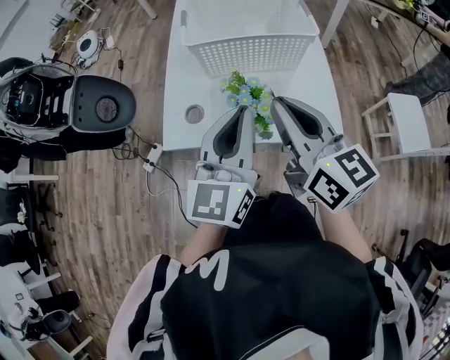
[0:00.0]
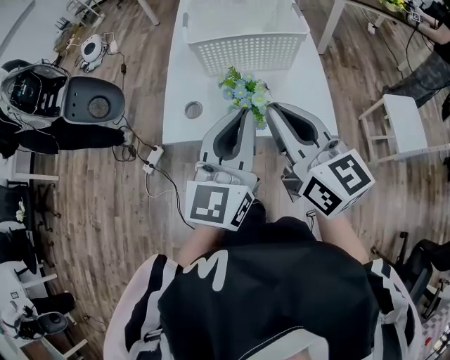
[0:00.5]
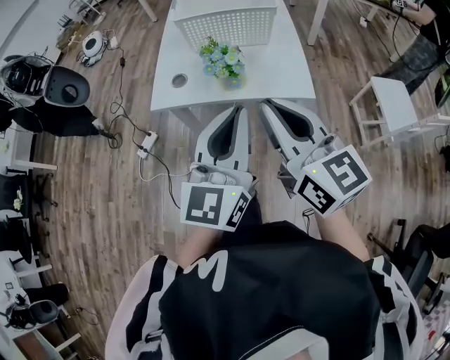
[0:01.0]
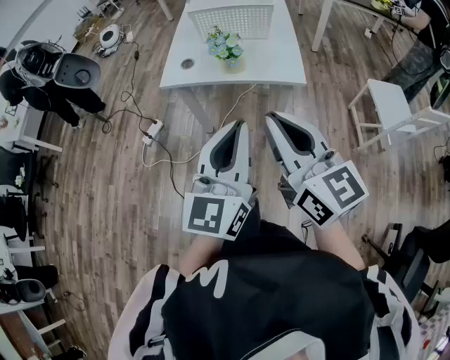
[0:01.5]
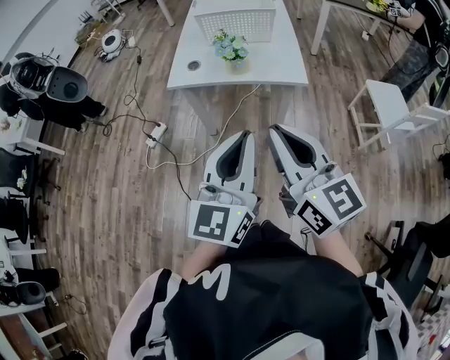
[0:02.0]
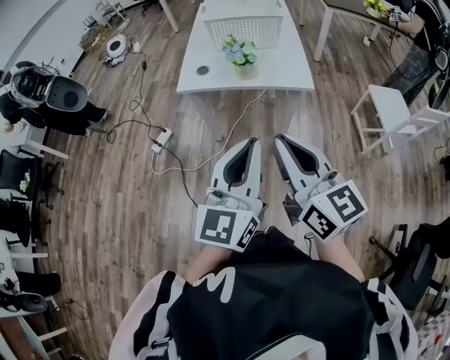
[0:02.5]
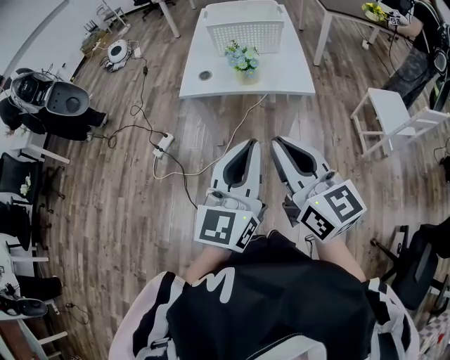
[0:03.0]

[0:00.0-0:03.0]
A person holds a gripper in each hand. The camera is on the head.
0:00.0 to 0:01.5: Both grippers travel together backward, about 35 cm.
0:01.5 to 0:03.0: The left gripper moves backward, approximately 5 cm; the right gripper shifts approximately 10 cm backward and to the left.

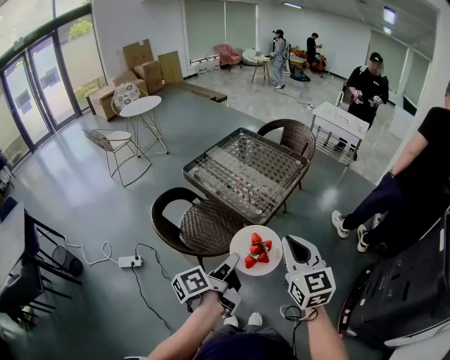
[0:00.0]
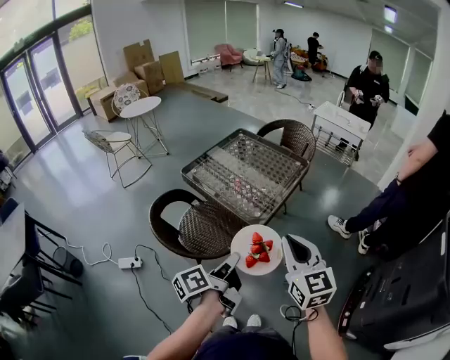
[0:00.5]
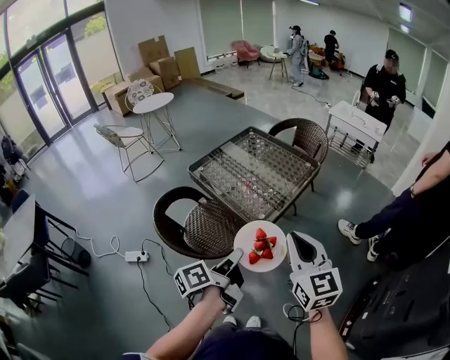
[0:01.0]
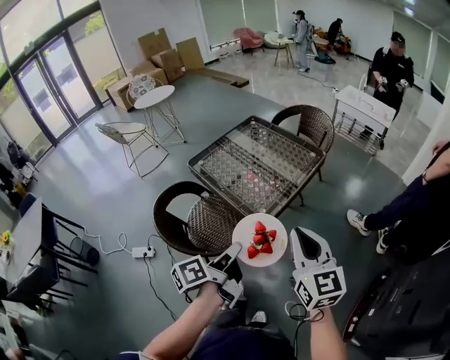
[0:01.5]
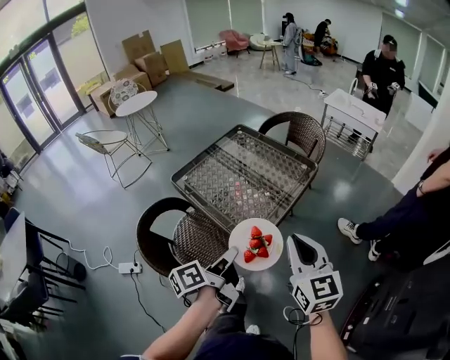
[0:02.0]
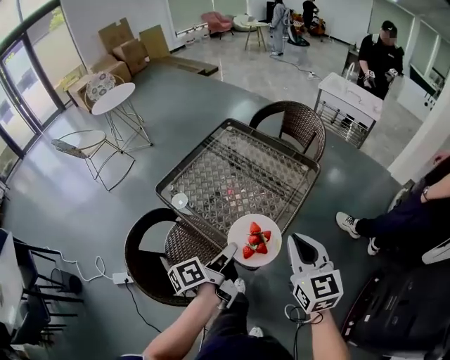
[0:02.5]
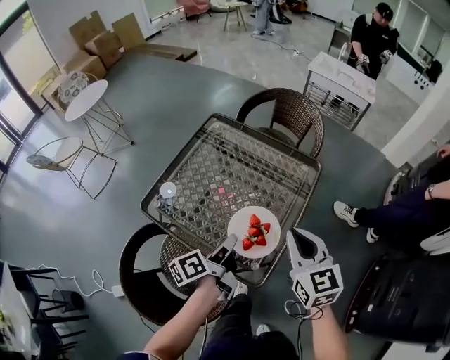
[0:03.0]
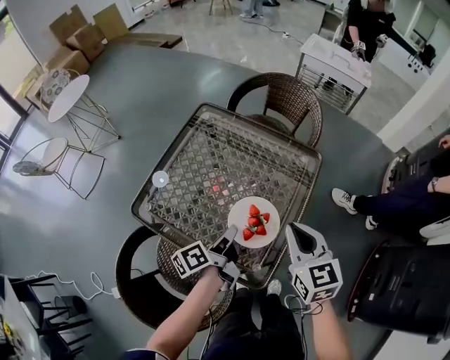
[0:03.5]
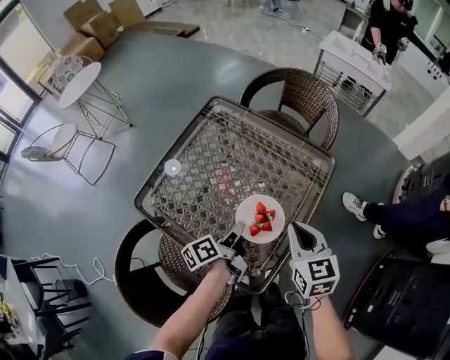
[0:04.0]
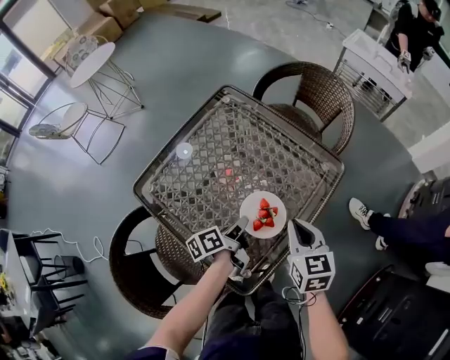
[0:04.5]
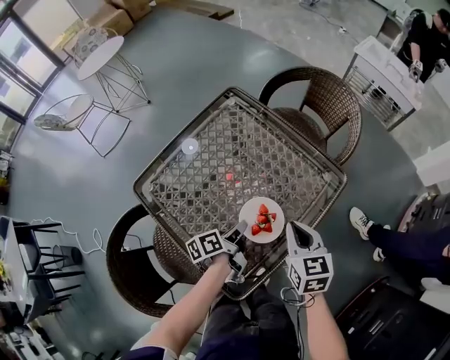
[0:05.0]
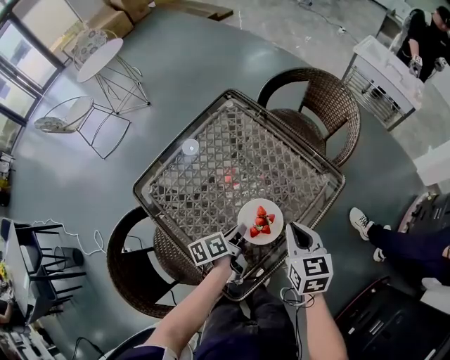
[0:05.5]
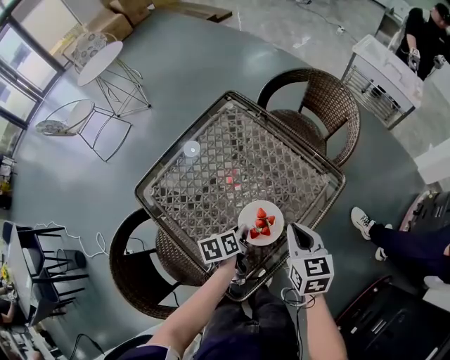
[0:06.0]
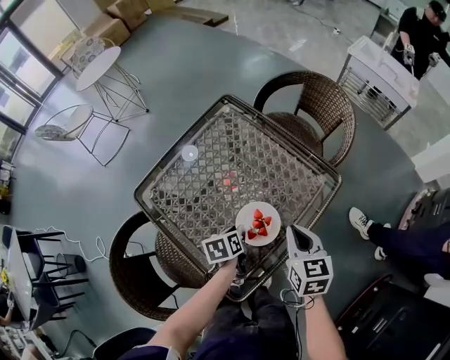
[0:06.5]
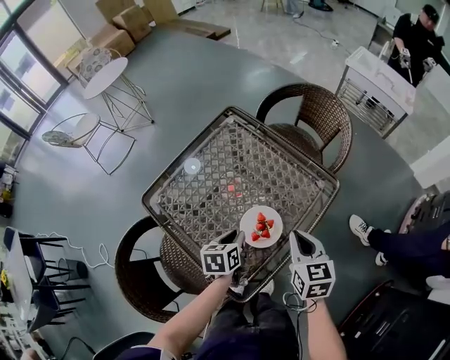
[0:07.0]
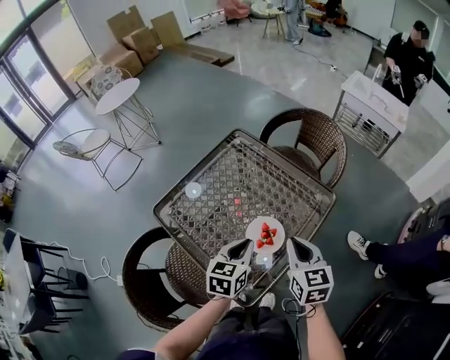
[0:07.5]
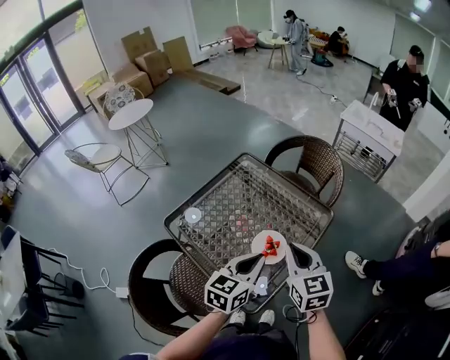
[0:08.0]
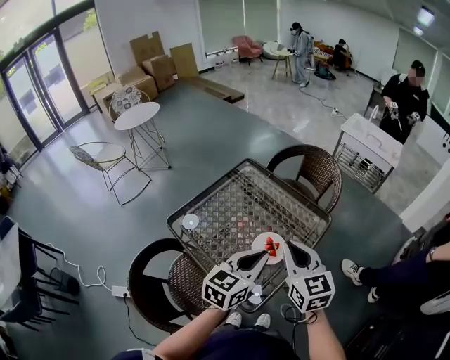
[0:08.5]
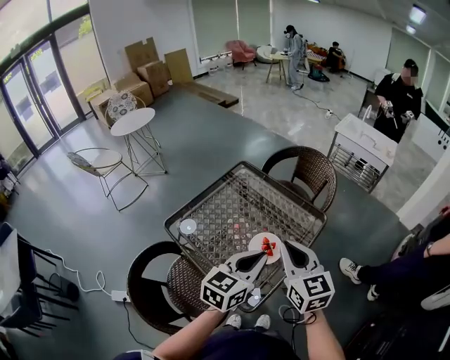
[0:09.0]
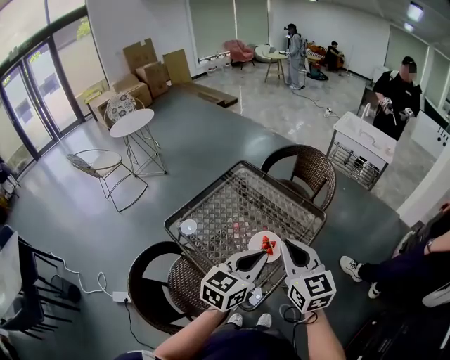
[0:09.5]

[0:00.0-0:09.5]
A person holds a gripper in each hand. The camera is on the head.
0:00.0 to 0:02.0: The grippers both shift forward by roughly 15 cm.
0:02.0 to 0:04.0: The two grippers go some 30 cm forward and downward. The right gripper turns by about 20 degrees.
0:04.0 to 0:05.5: The right gripper moves forward and downward, about 10 cm, while the left gripper heads downward, covering roughly 5 cm.
0:05.5 to 0:07.5: The right gripper is displaced upward by about 10 cm. The left gripper shifts approximately 15 cm upward, and rolls clockwise, seen from behind, by roughly 50 degrees.
0:07.5 to 0:09.5: The two grippers go about 15 cm upward. The left gripper turns by some 20 degrees.

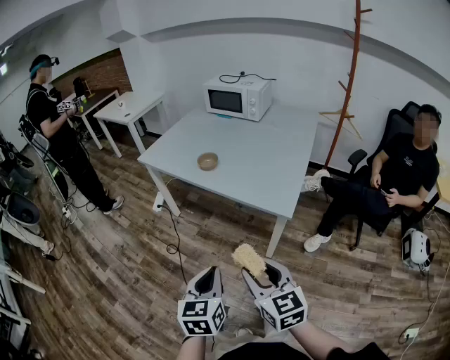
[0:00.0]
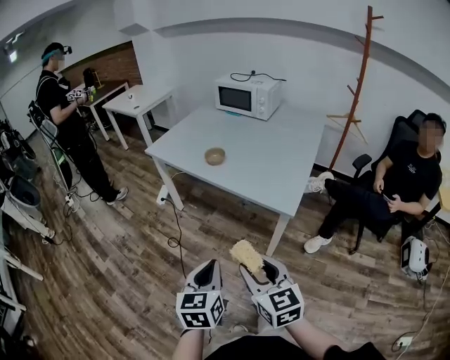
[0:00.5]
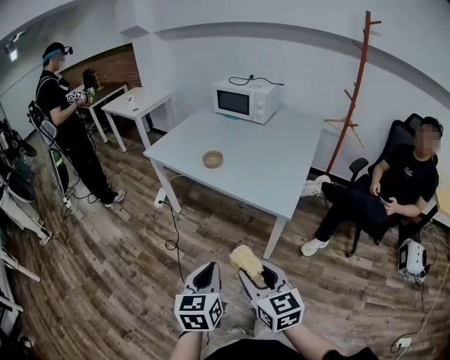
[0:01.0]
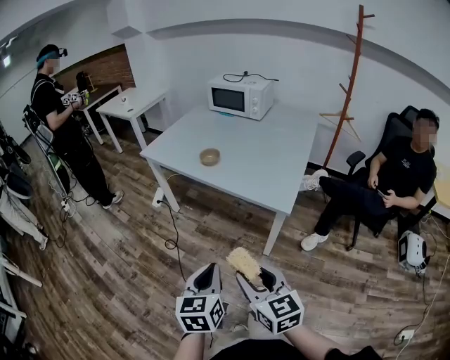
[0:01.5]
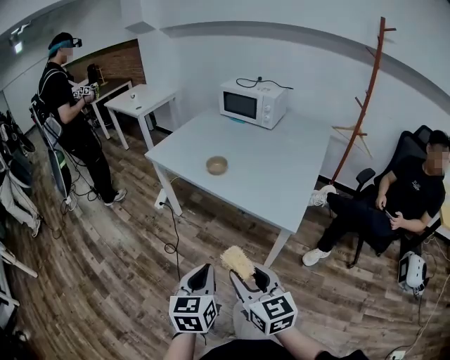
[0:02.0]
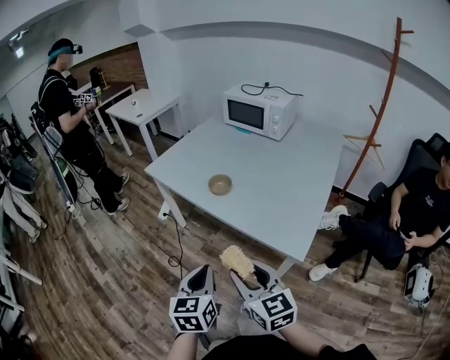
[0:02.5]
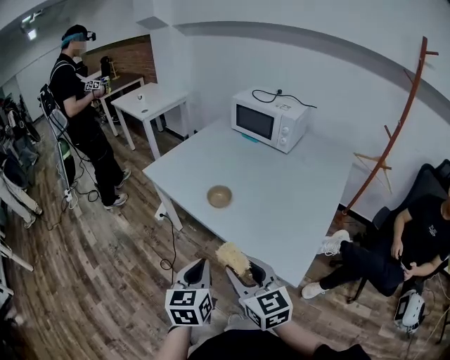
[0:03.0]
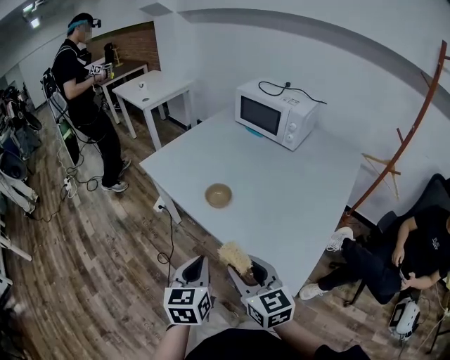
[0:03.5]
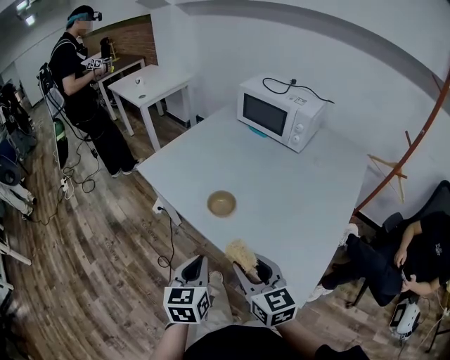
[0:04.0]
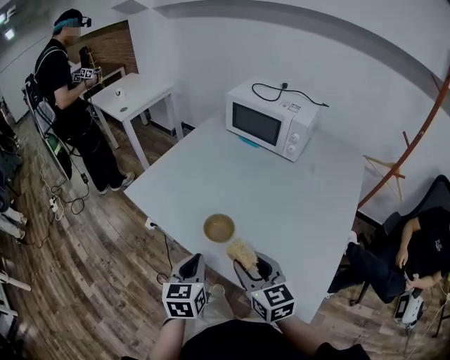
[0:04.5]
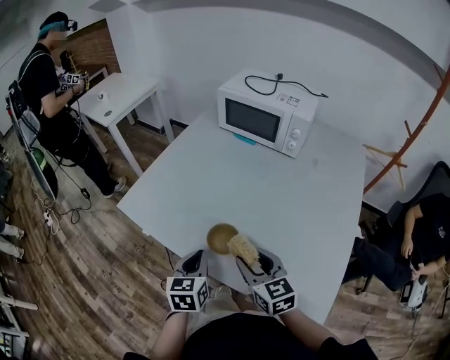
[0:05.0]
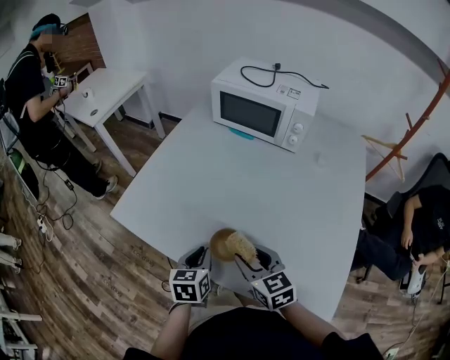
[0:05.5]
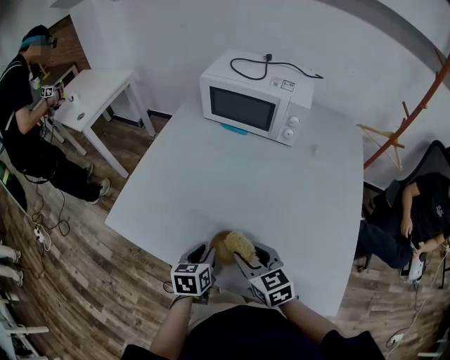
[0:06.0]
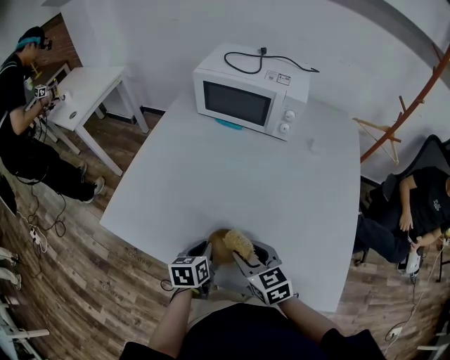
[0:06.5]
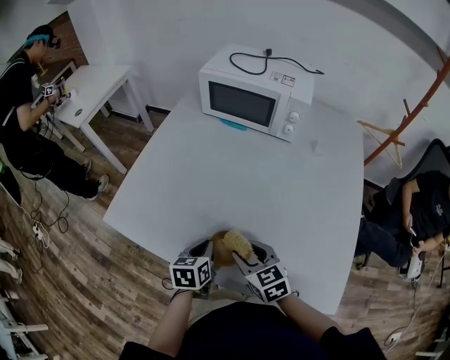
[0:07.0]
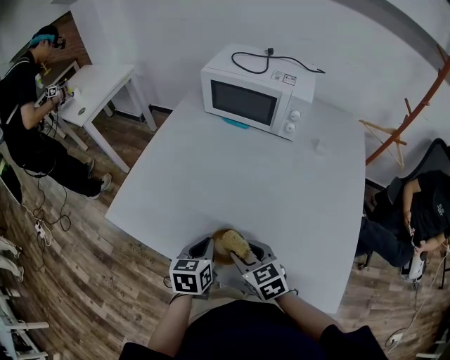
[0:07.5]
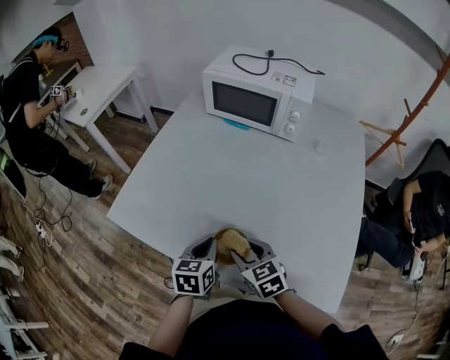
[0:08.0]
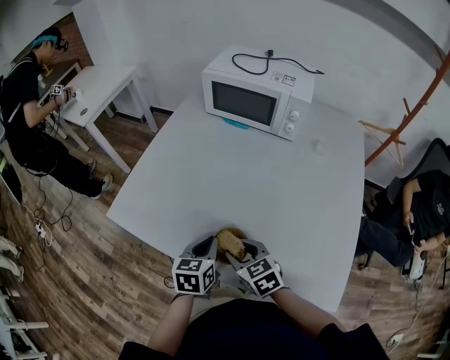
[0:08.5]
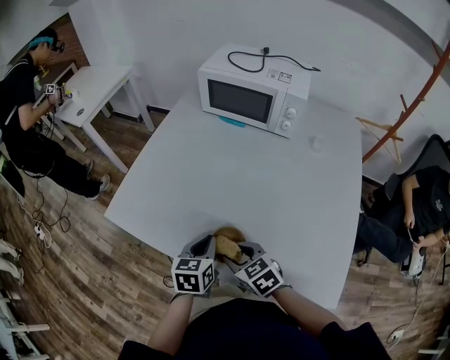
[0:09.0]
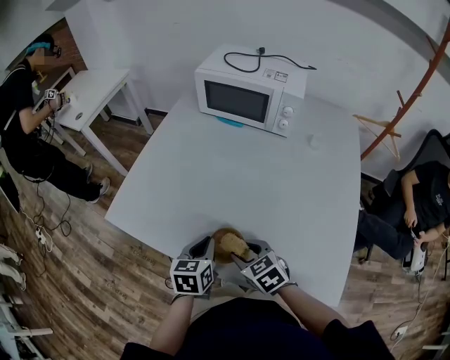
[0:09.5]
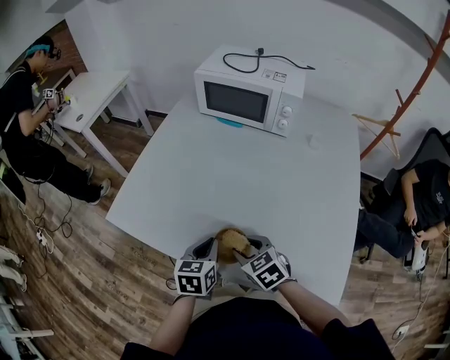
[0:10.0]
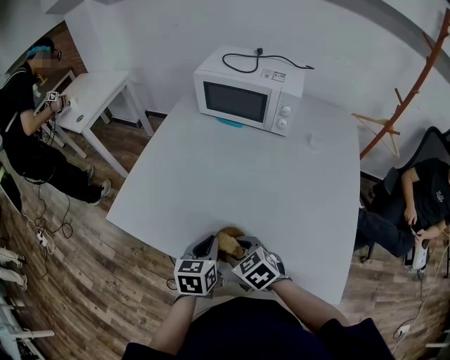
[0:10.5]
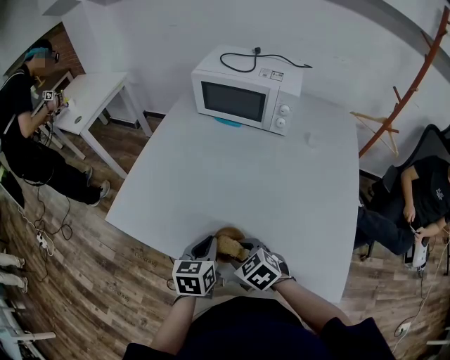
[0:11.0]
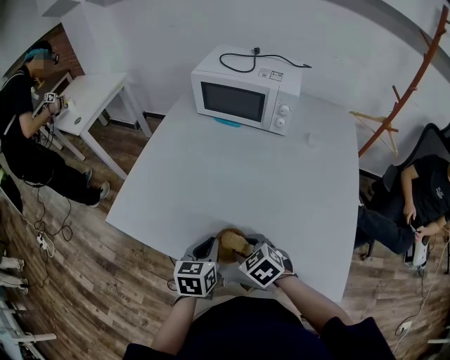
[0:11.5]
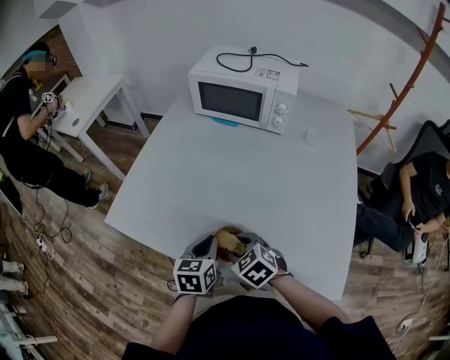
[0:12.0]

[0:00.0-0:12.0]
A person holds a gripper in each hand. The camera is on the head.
0:00.0 to 0:02.0: The grippers stay close to where they were, moving slightly.
0:02.0 to 0:04.0: Both grippers move forward, some 30 cm.
0:04.0 to 0:06.0: Both grippers move forward and downward, some 25 cm. The left gripper swivels approximately 30 degrees, and opens.
0:06.0 to 0:08.0: The grippers move only a little.
0:08.0 to 0:10.0: There are only small adjustments of the grippers.
0:10.0 to 0:12.0: The grippers stay close to where they were, moving slightly.

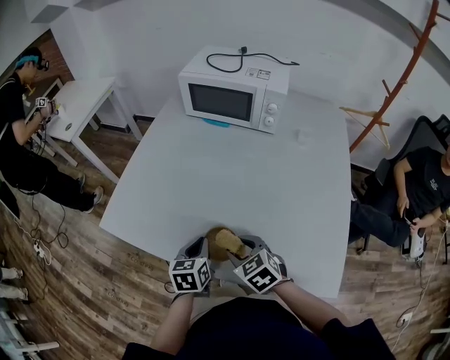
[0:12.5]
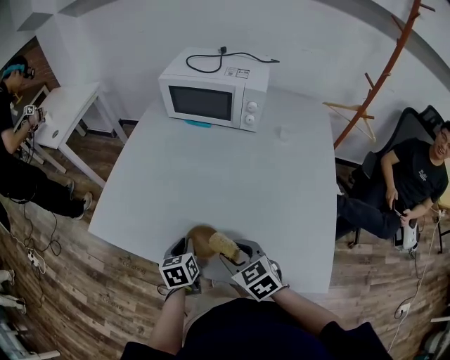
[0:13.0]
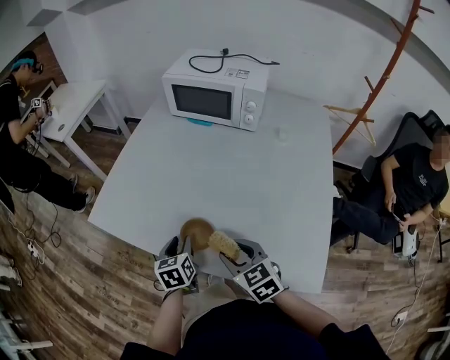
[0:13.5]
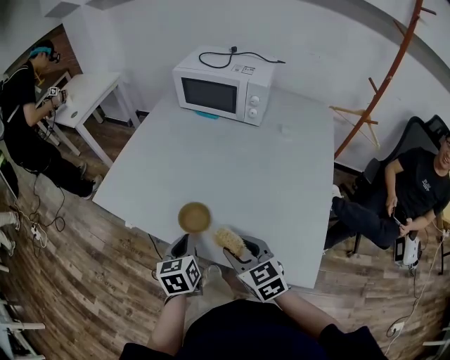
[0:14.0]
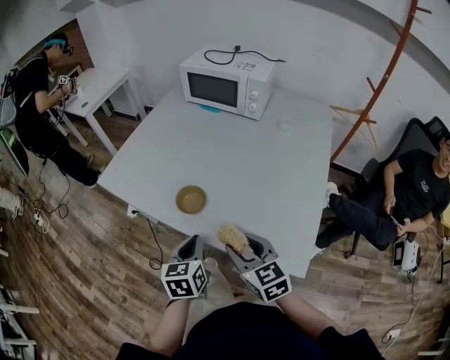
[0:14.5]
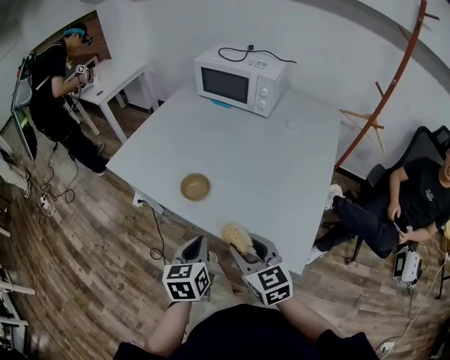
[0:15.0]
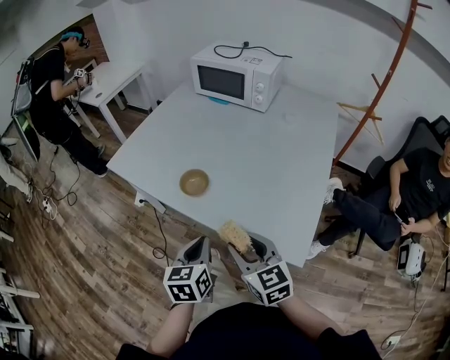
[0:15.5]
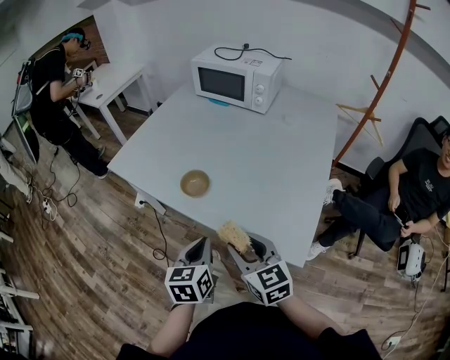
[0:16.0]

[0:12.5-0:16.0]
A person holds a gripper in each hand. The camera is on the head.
0:12.5 to 0:14.5: The right gripper is displaced backward, upward and to the right by some 20 cm, and swivels about 20 degrees, while the left gripper shifts approximately 15 cm backward, and opens, then closes again.
0:14.5 to 0:16.0: Both grippers move backward, roughly 5 cm.
